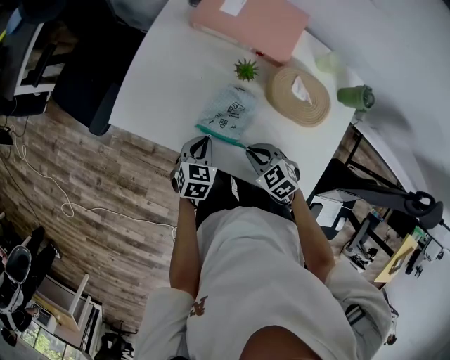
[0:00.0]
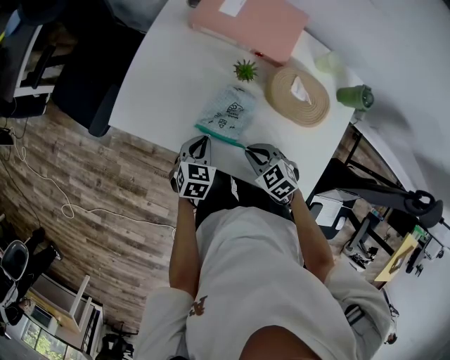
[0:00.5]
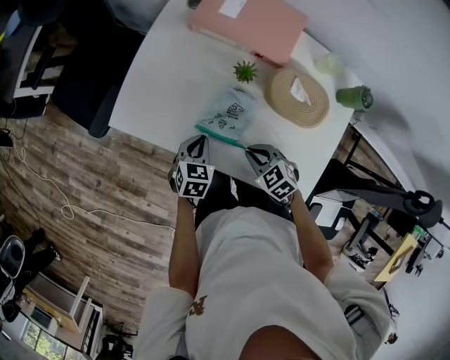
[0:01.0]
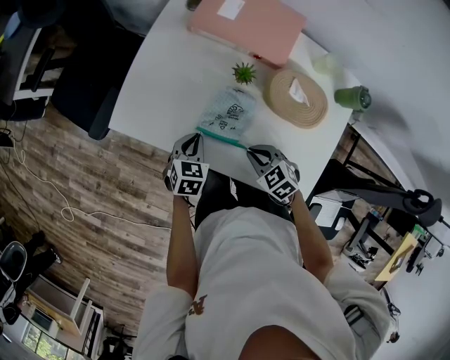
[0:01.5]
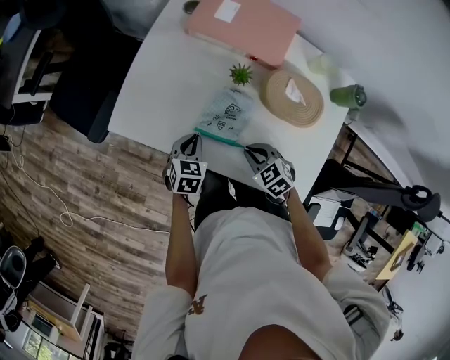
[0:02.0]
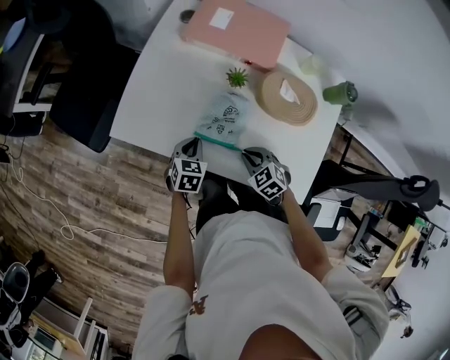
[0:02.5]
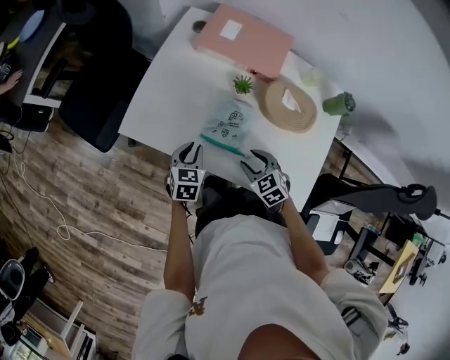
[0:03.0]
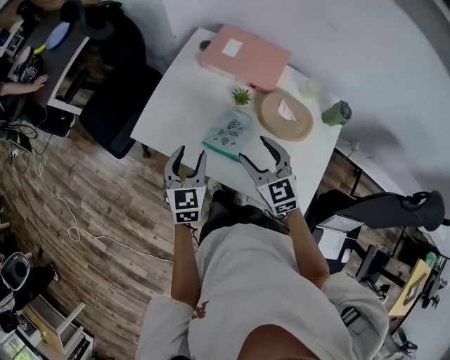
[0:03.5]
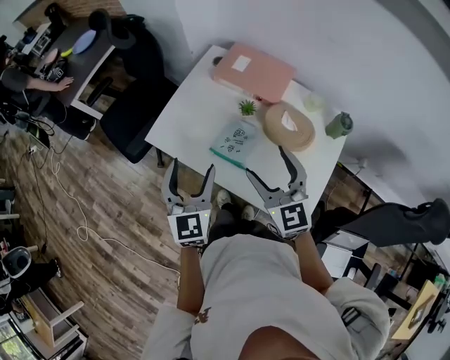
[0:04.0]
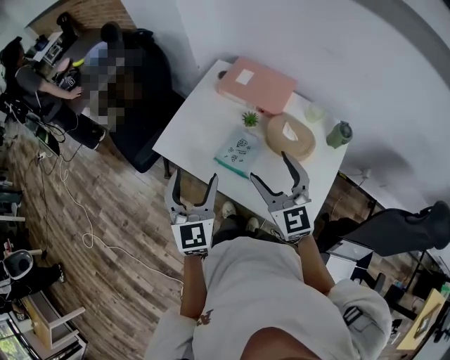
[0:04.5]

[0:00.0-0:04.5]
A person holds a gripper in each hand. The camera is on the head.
0:00.0 to 0:02.0: There are only small adjustments of the grippers.
0:02.0 to 0:04.5: Both grippers travel together upward, some 35 cm. The left gripper points its fingers some 40 degrees further upward, and opens. Meanwhile the right gripper tilts its fingers some 50 degrees upward, and opens its fingers.

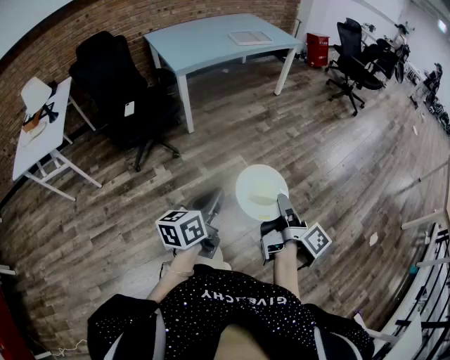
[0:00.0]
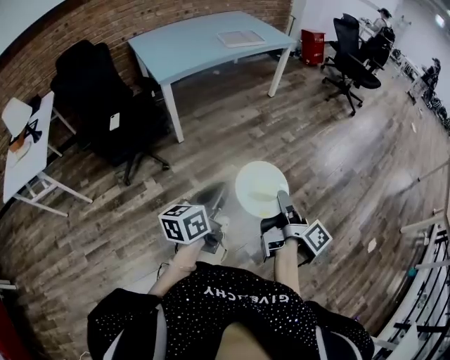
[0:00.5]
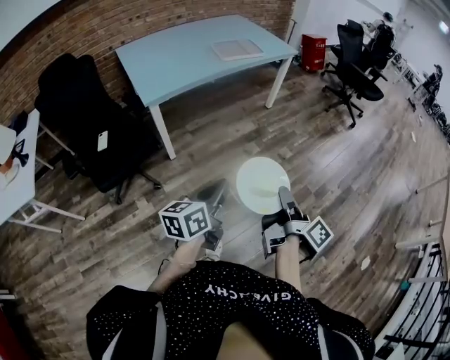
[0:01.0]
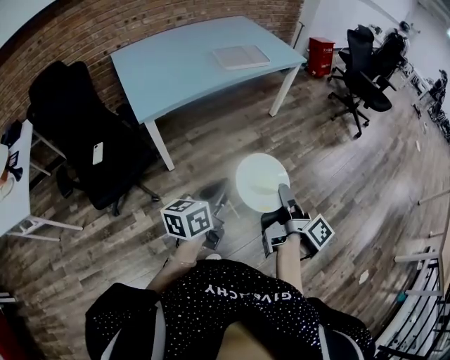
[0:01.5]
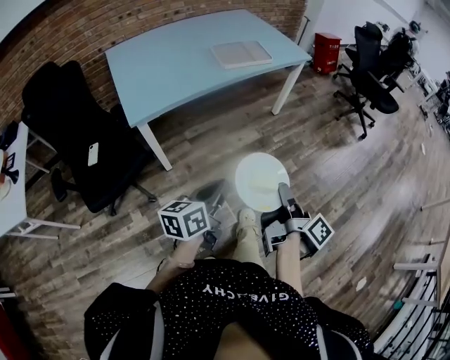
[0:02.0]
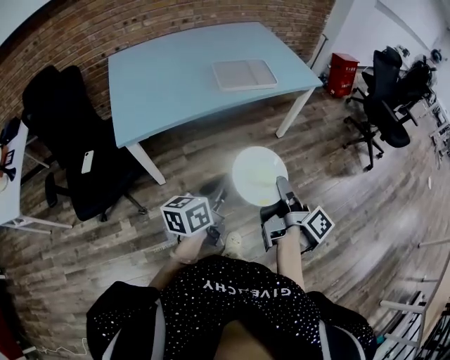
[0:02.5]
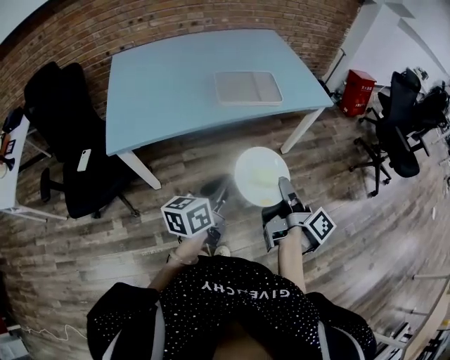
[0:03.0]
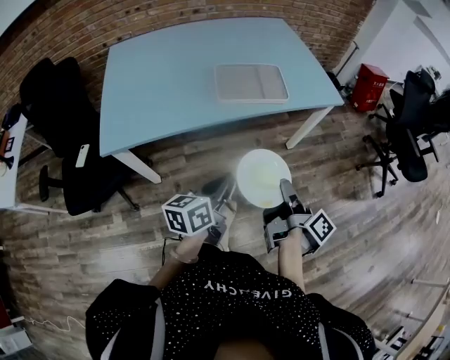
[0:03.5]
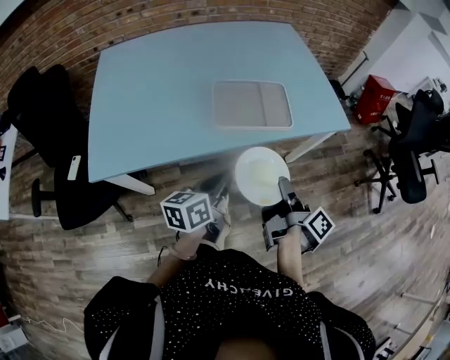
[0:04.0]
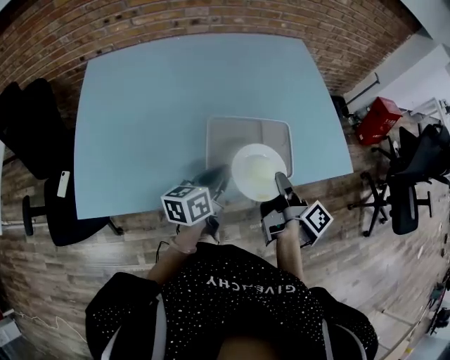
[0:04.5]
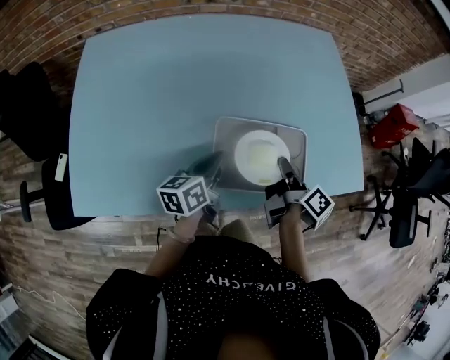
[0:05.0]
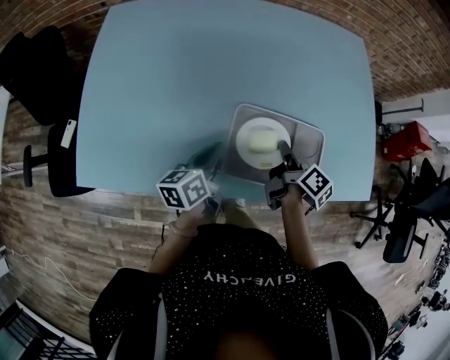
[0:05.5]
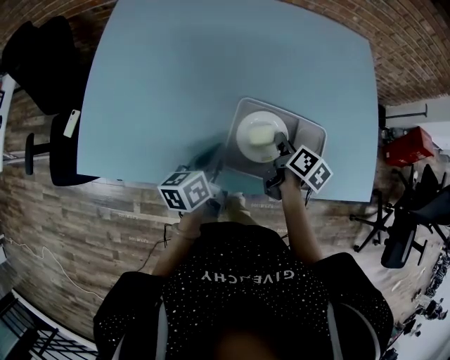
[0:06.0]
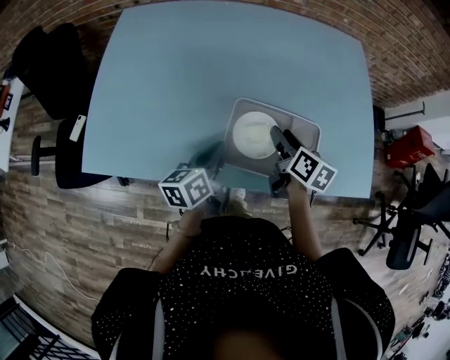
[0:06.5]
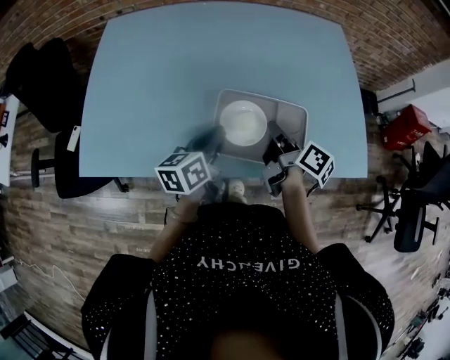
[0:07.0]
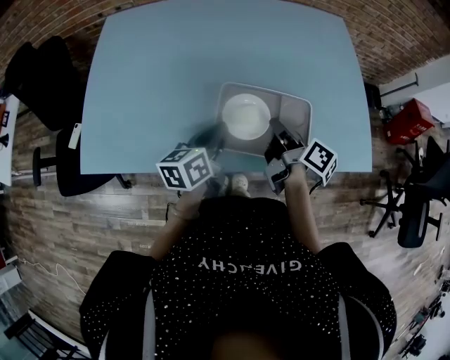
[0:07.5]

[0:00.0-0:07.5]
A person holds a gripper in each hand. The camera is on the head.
0:00.0 to 0:02.0: The left gripper moves approximately 60 cm.
0:02.0 to 0:04.0: The left gripper shifts by roughly 50 cm.
0:04.0 to 0:05.5: The left gripper ends up roughly 30 cm from where it was, and changes its angle by about 20 degrees.
0:05.5 to 0:07.5: The left gripper shifts by approximately 10 cm.

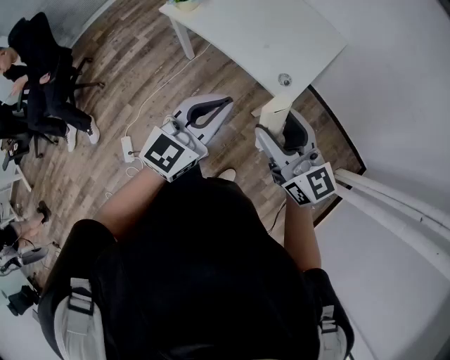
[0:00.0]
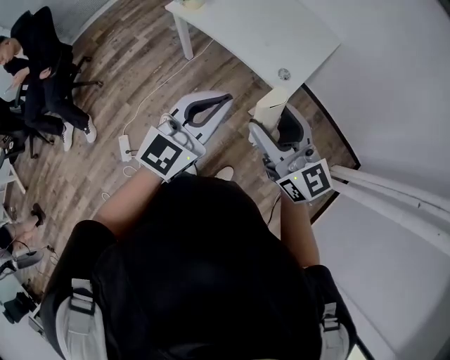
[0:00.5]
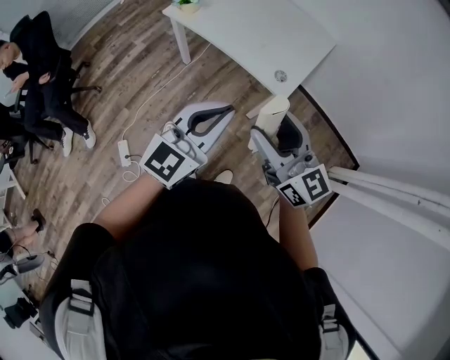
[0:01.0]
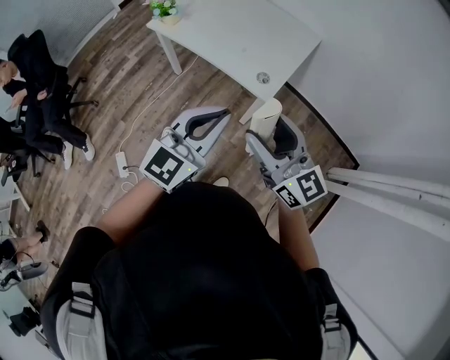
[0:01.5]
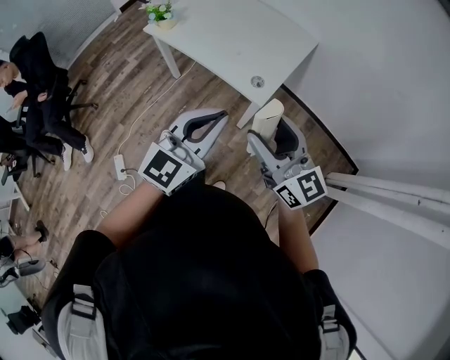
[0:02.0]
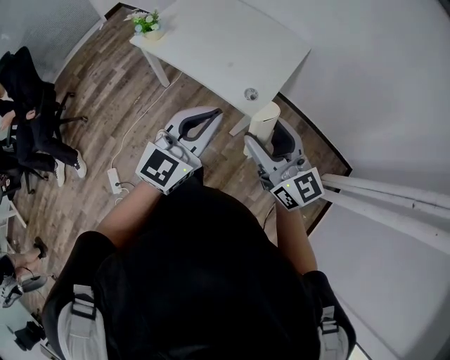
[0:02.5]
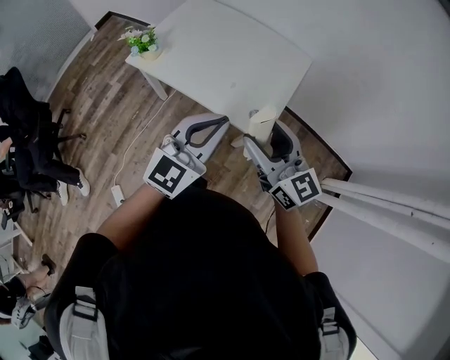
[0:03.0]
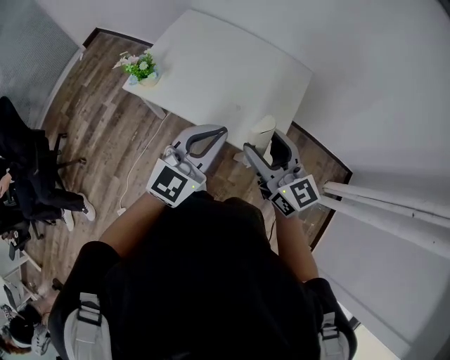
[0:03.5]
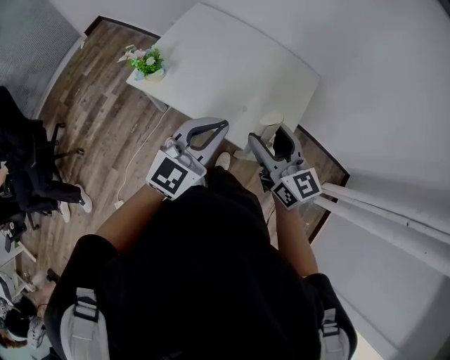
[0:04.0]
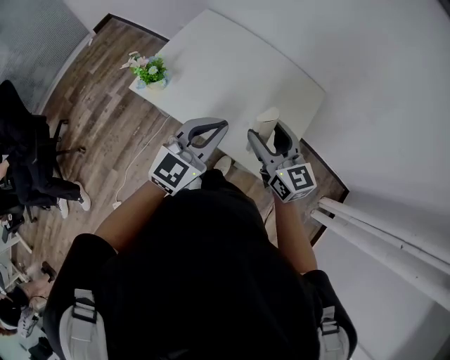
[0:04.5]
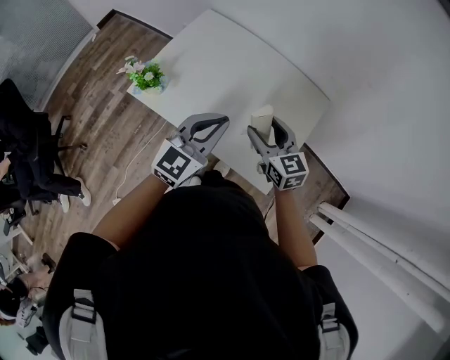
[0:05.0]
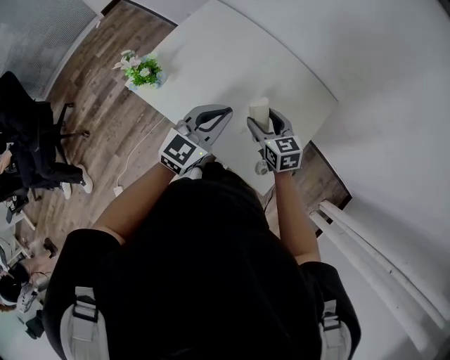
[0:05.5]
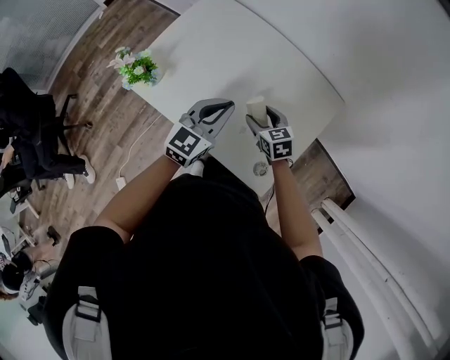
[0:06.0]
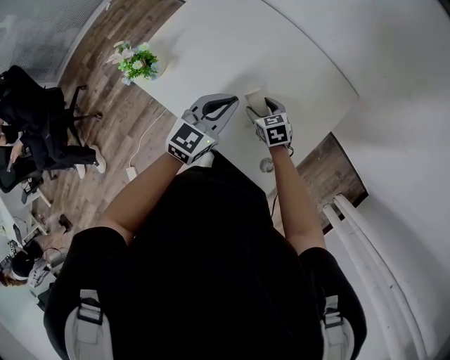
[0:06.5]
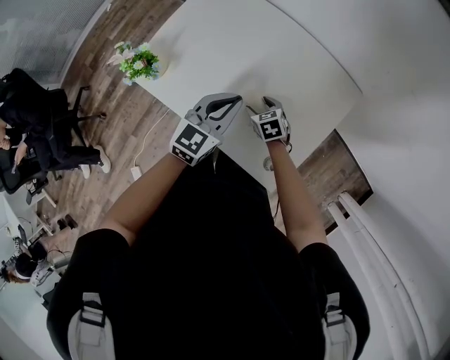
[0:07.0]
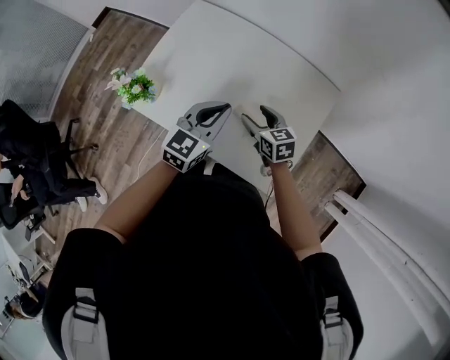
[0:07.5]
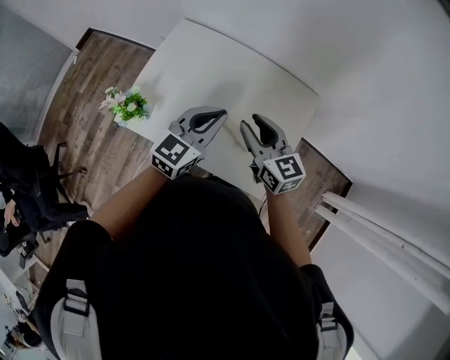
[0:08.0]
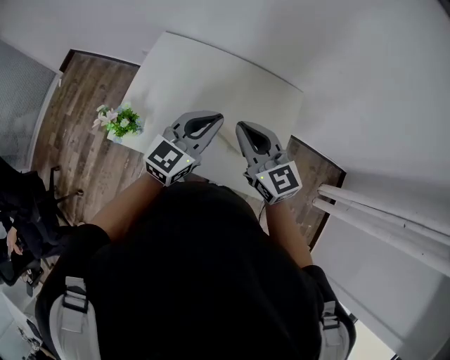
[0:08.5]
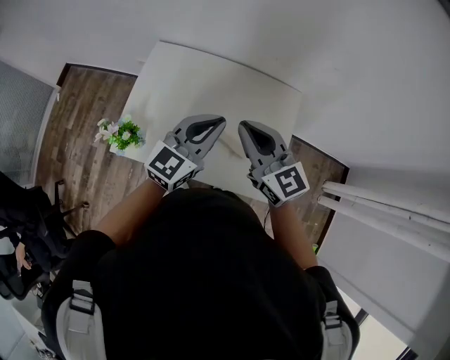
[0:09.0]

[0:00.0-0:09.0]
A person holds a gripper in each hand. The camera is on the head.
0:00.0 to 0:02.0: Both grippers travel together to the right and backward, some 10 cm.
0:02.0 to 0:04.5: The two grippers travel together, forward and to the left, about 40 cm.
0:04.5 to 0:07.0: The right gripper travels downward and forward by roughly 40 cm, and tips its fingers downward by approximately 40 degrees; the left gripper goes approximately 25 cm forward, downward and to the right.
0:07.0 to 0:09.0: The left gripper moves upward, some 15 cm, and turns by roughly 30 degrees. Meanwhile the right gripper goes some 40 cm upward, angles its fingers upward, by about 50 degrees, and closes.

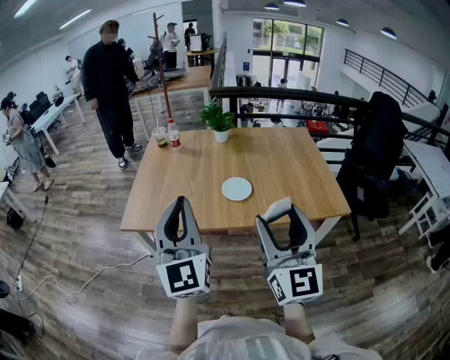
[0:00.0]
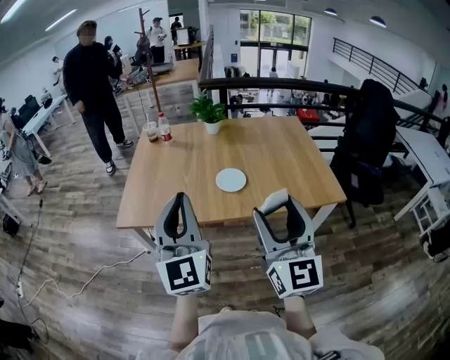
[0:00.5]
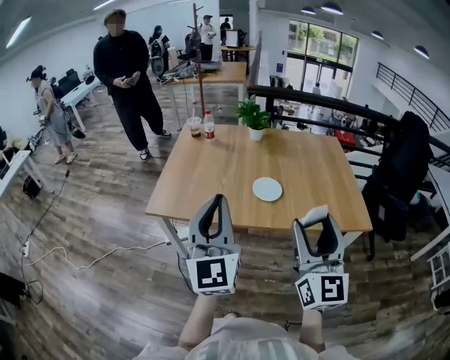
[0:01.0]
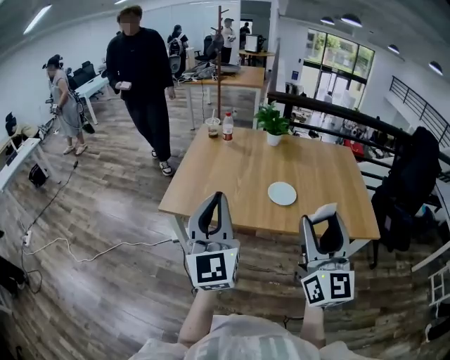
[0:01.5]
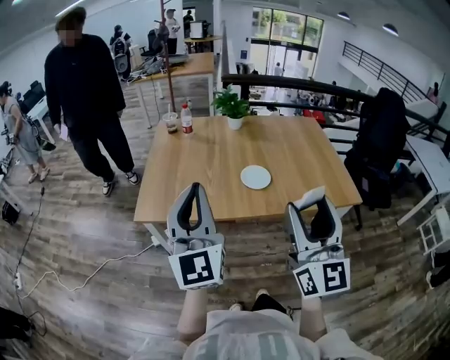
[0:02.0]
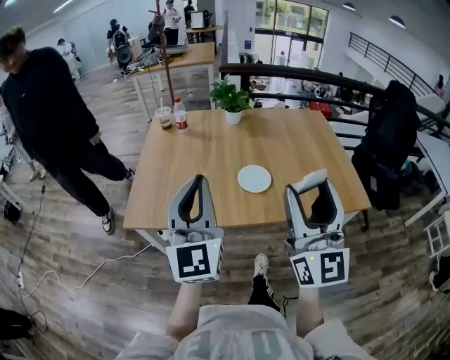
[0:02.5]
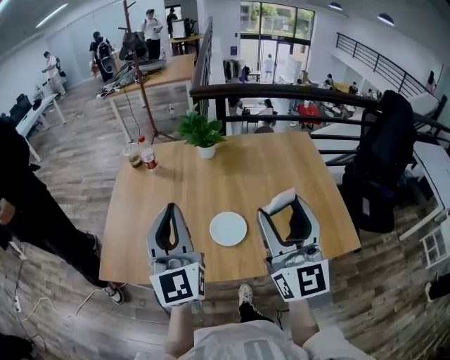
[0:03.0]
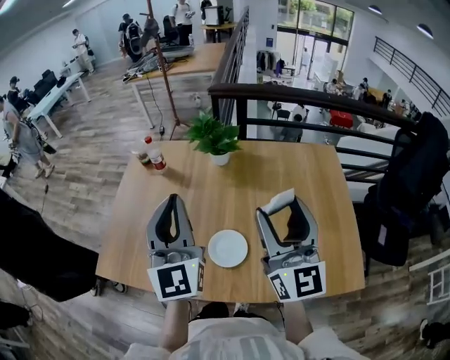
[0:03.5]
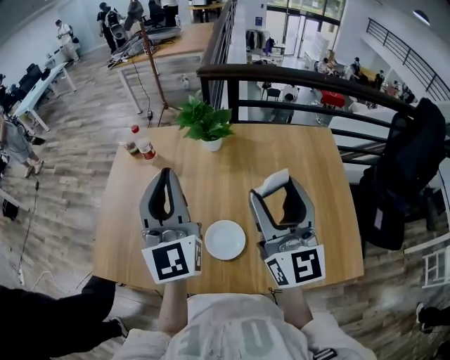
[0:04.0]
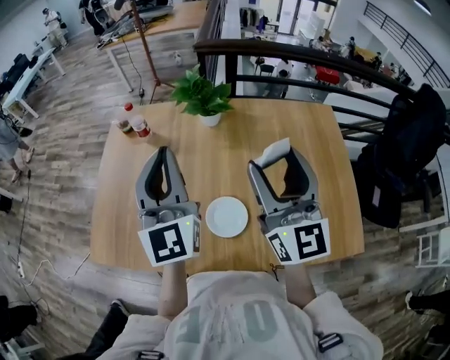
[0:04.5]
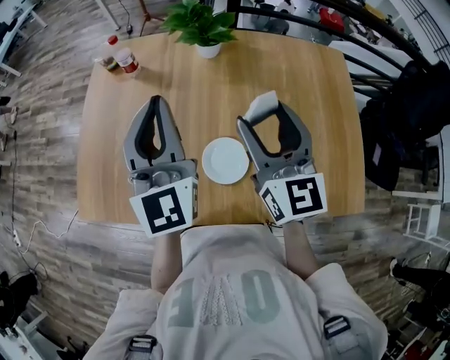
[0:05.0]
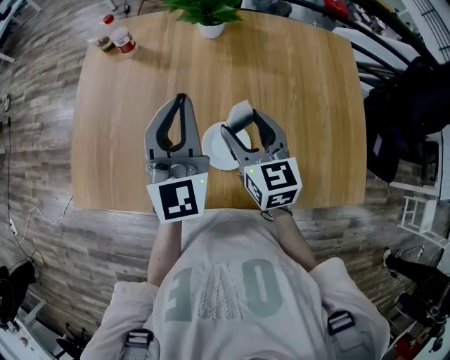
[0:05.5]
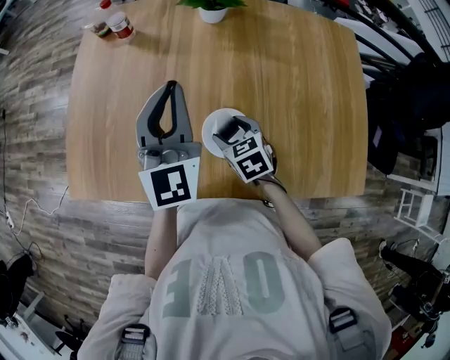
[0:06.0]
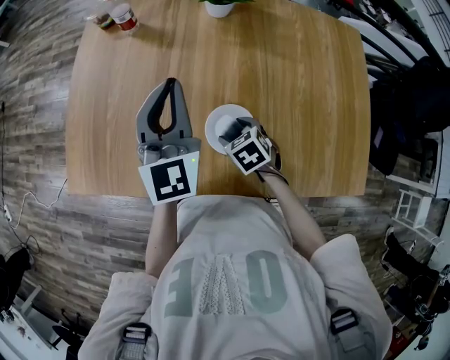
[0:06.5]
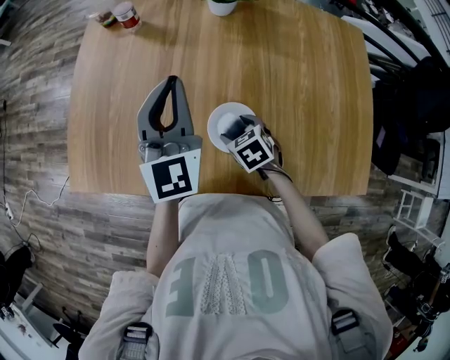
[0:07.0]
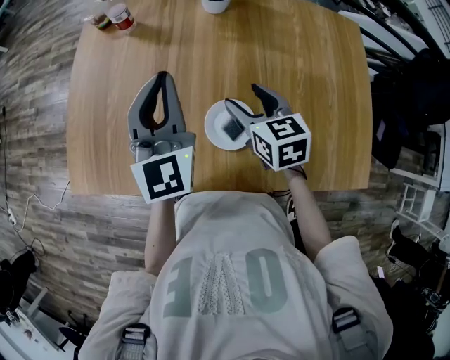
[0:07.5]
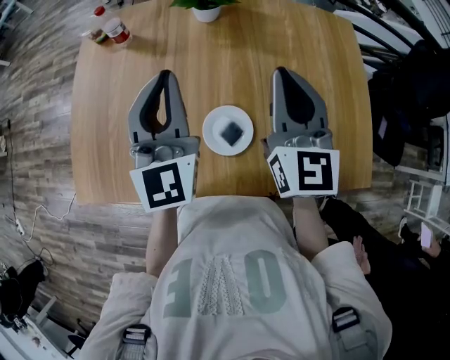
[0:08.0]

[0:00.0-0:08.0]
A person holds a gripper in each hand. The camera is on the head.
0:00.0 to 0:02.0: Both grippers travel together to the left, approximately 5 cm.
0:02.0 to 0:04.0: The pair of grippers is taken forward and to the right, about 40 cm.
0:04.0 to 0:06.0: The right gripper travels downward by some 35 cm, and points its fingers some 70 degrees further downward, while the left gripper travels downward by roughly 15 cm.
0:06.0 to 0:08.0: The right gripper travels upward by some 25 cm, tips its fingers upward by some 50 degrees, and closes up.
